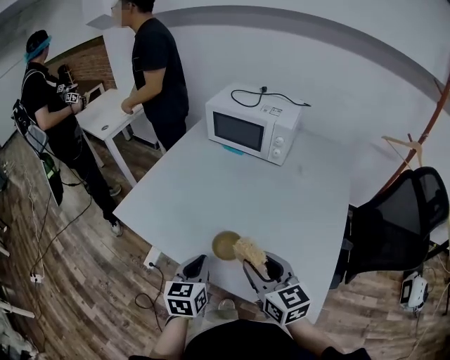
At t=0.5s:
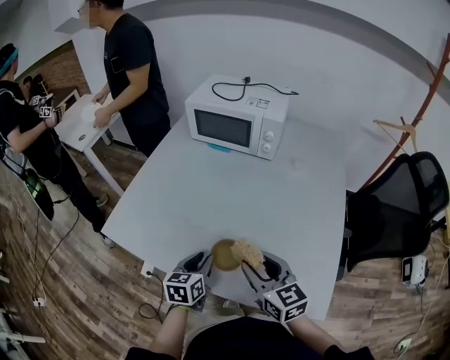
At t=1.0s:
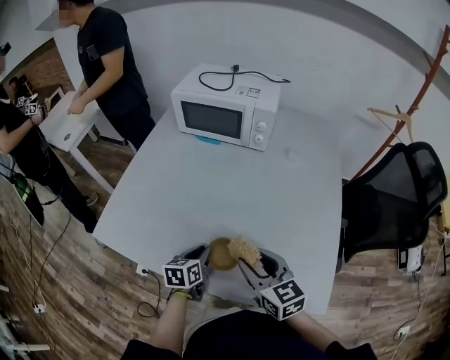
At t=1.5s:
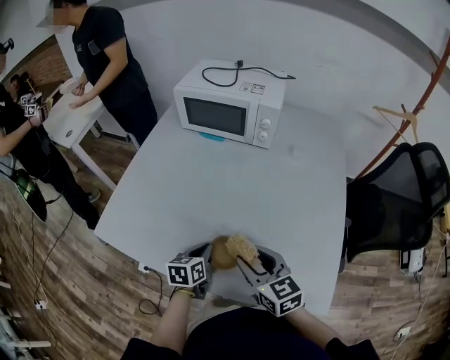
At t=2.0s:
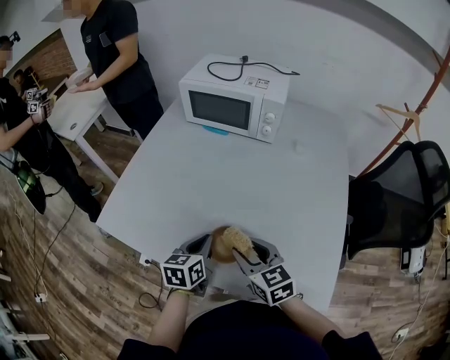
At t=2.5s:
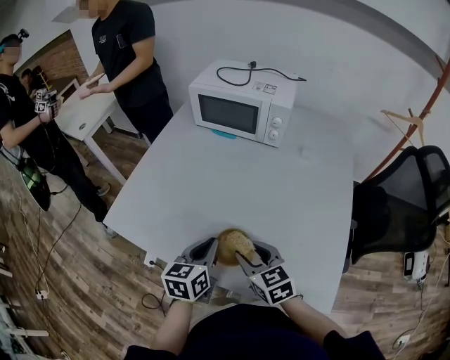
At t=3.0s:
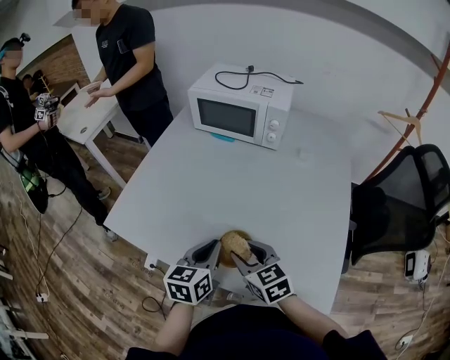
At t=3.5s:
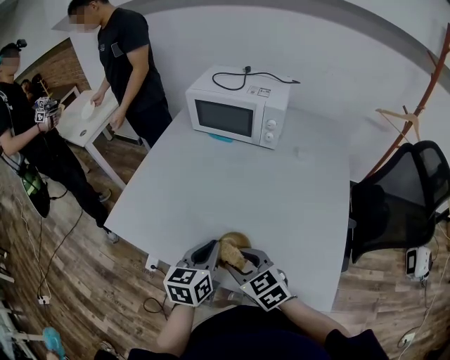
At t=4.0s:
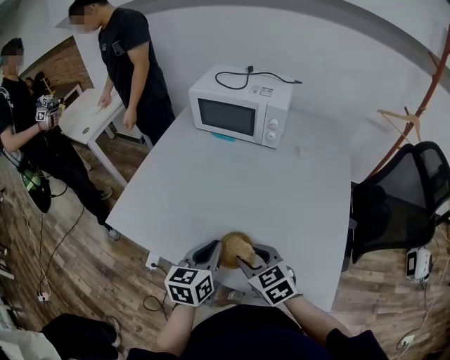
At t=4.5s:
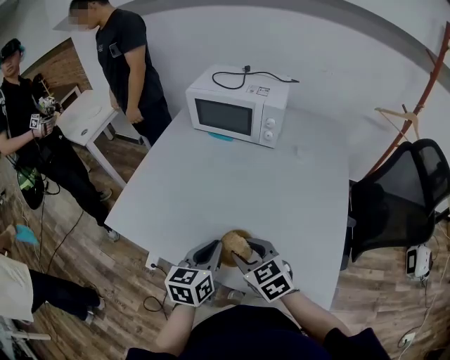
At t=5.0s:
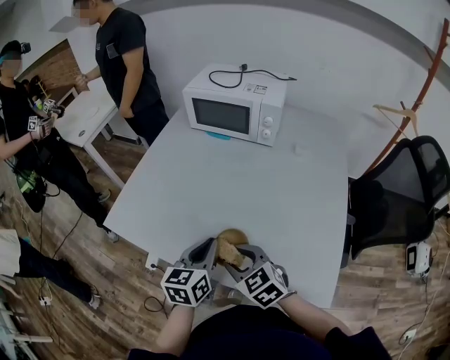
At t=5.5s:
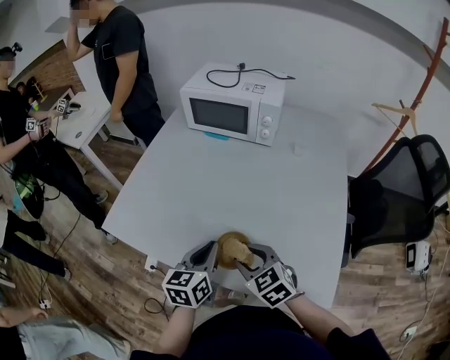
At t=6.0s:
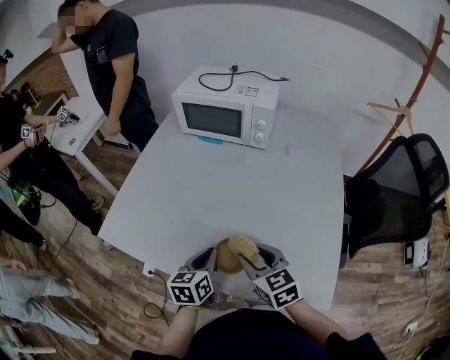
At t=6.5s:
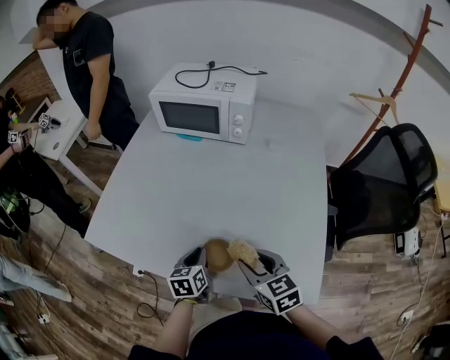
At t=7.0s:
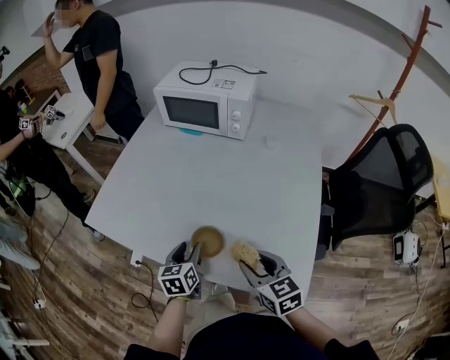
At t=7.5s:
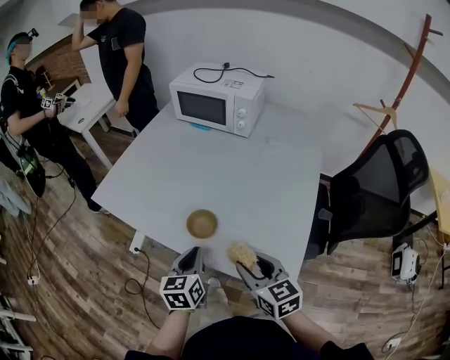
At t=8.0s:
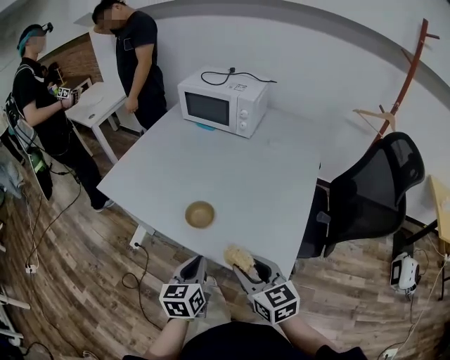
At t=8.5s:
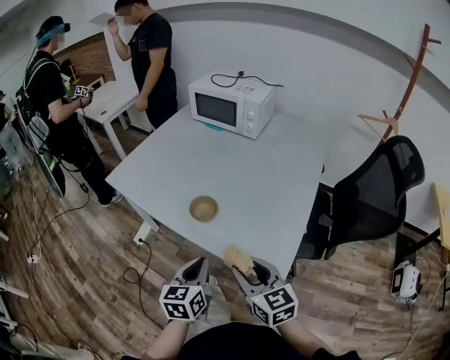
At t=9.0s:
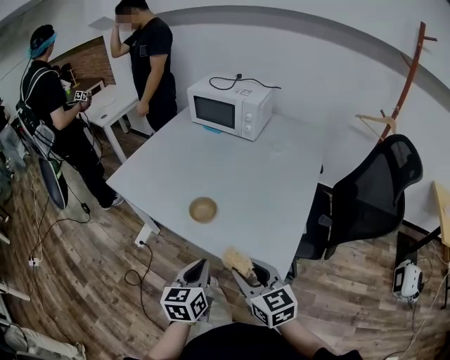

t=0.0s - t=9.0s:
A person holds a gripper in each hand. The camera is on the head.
t=0.0s - t=2.0s: The left gripper moves forward and downward, roughly 10 cm, while the right gripper goes roughly 10 cm downward and forward.
t=2.0s - t=4.5s: The left gripper travels upward by roughly 5 cm.
t=4.5s - t=7.0s: The right gripper is displaced to the right and backward by some 15 cm. The left gripper goes some 10 cm downward, and opens.
t=7.0s - t=9.0s: The two grippers go some 20 cm backward. The left gripper closes up.

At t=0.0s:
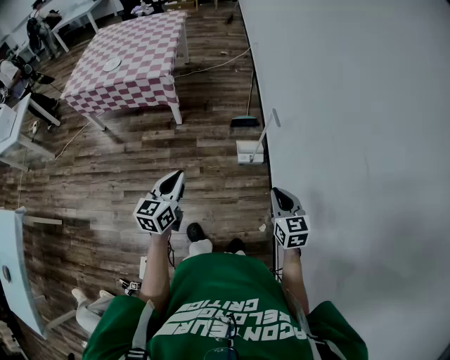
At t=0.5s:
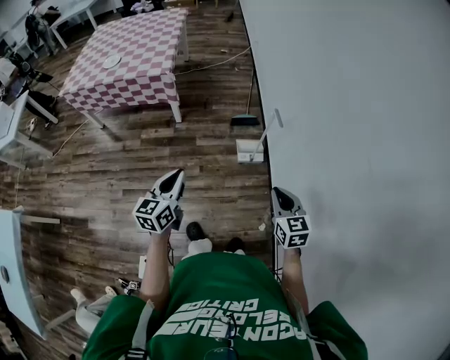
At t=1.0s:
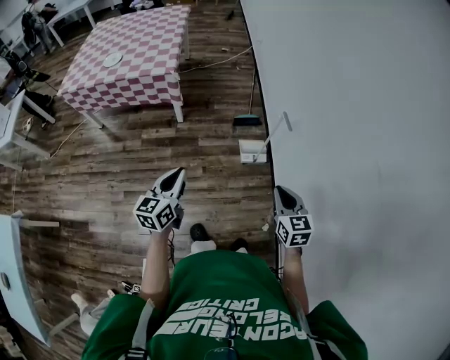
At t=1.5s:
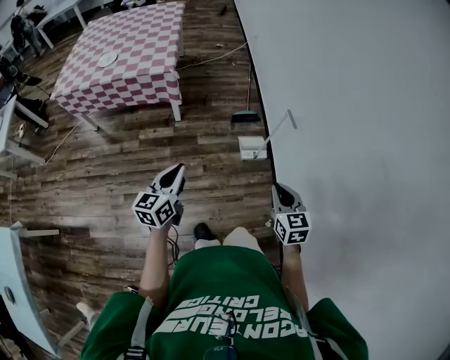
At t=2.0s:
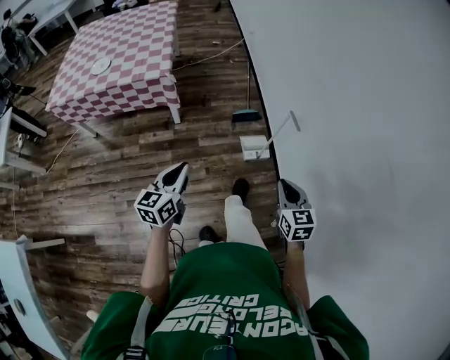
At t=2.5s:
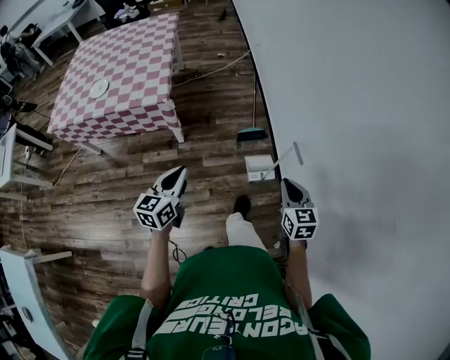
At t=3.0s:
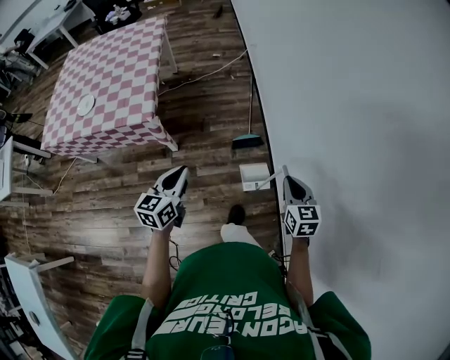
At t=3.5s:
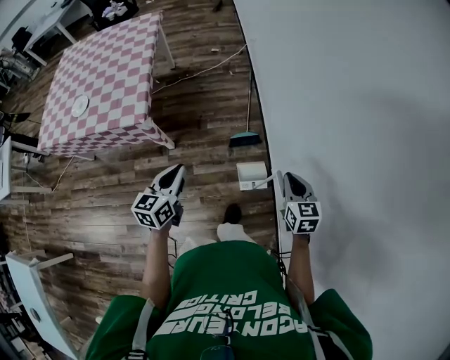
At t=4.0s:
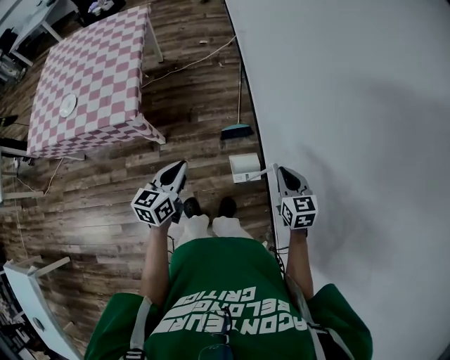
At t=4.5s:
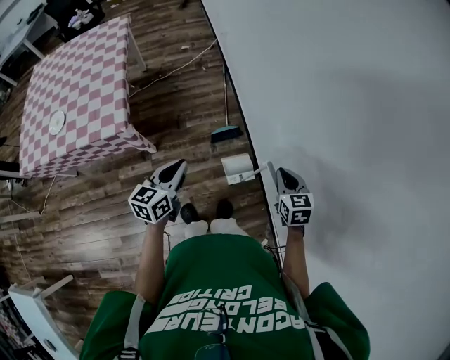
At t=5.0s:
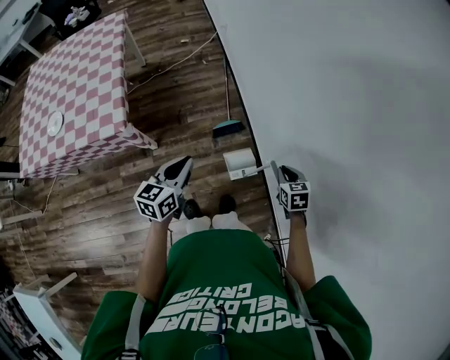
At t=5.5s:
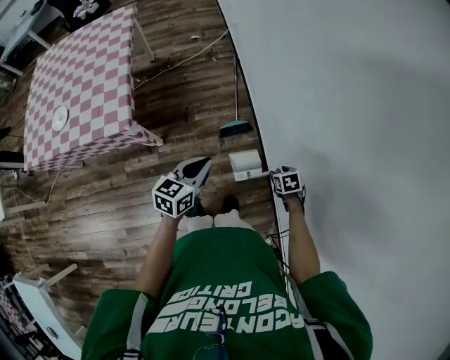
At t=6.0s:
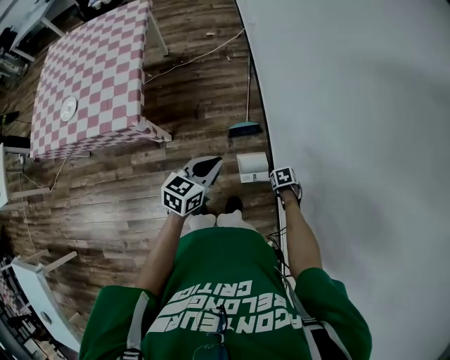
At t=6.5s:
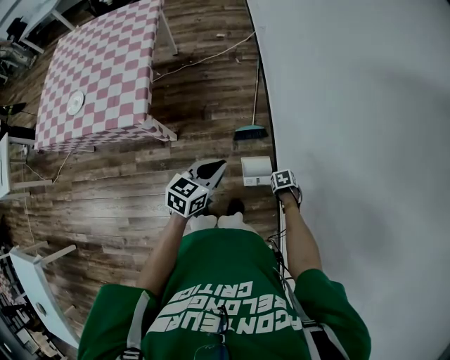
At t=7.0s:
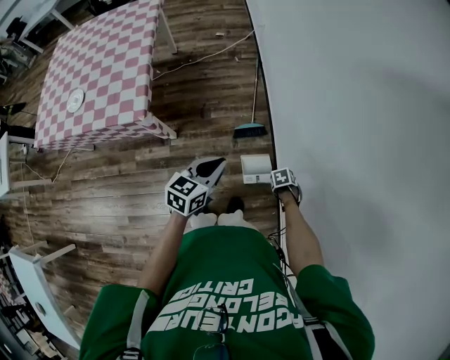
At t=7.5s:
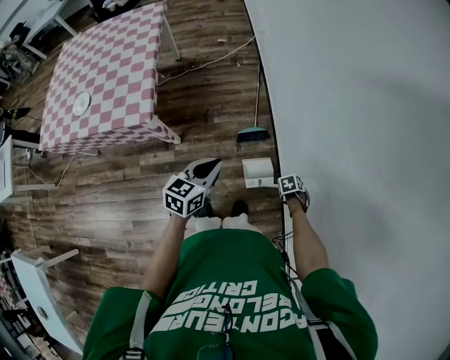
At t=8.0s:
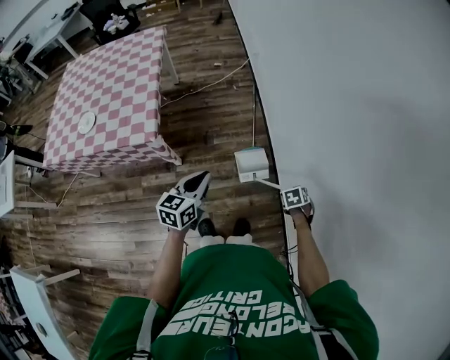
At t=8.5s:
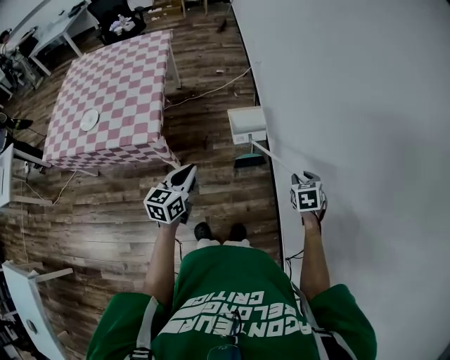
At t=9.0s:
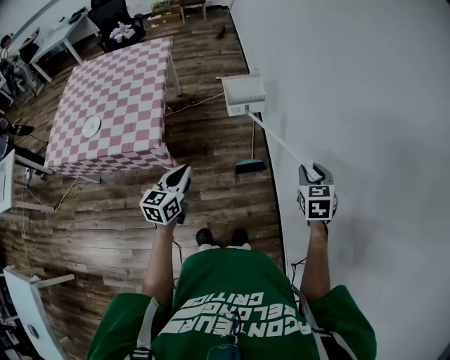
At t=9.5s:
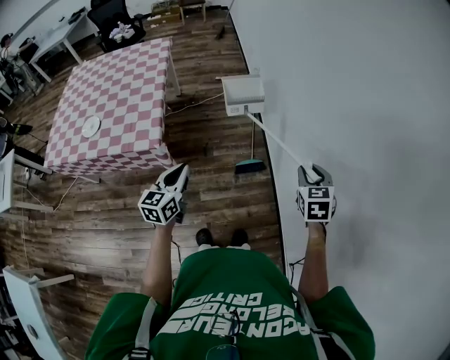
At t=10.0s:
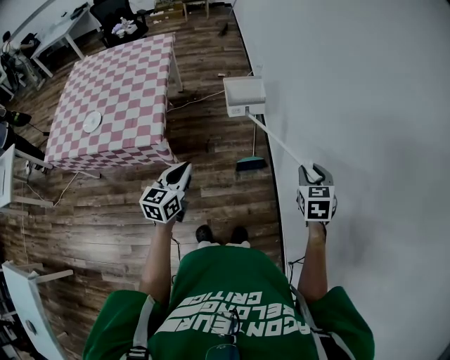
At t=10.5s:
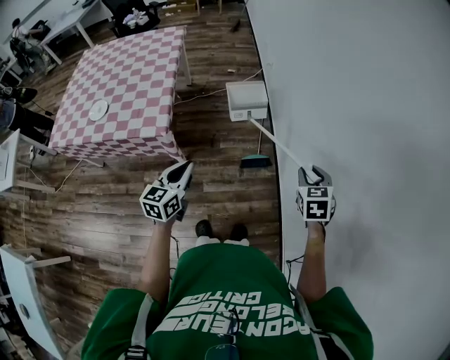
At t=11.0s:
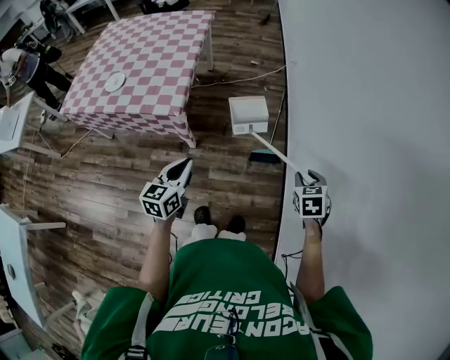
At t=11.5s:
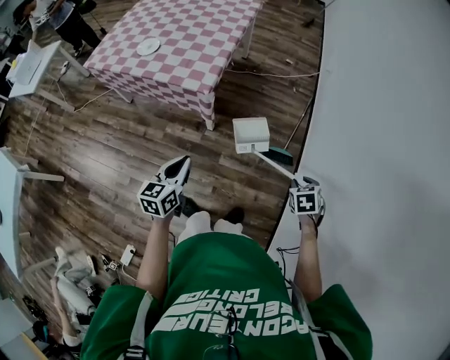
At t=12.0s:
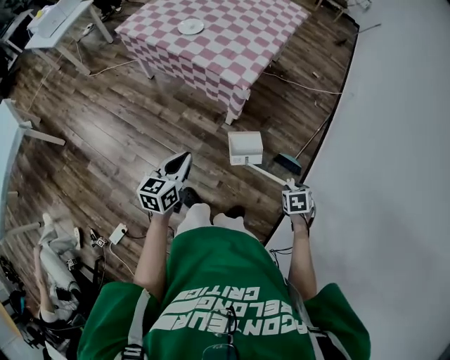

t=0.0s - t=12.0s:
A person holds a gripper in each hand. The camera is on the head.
t=0.0s - t=2.0s: Both grippers travel together to the left and forward, approximately 15 cm.
t=2.0s - t=4.0s: Both grippers move forward, some 35 cm.
t=4.0s - t=6.0s: The right gripper goes some 30 cm downward, tilts its fingers roughly 50 degrees downward, and opens up, while the left gripper moves approximately 15 cm.
t=6.0s - t=8.0s: The right gripper goes some 10 cm upward, and closes. The left gripper ends up roughly 10 cm from where it was.
t=8.0s - t=10.0s: The right gripper is displaced upward by approximately 30 cm, and points its fingers about 40 degrees further upward; the left gripper shifts by roughly 10 cm.
t=10.0s - t=12.0s: The left gripper moves about 30 cm, and swivels about 40 degrees. The right gripper goes approximately 25 cm downward, and tips its fingers downward by roughly 30 degrees.

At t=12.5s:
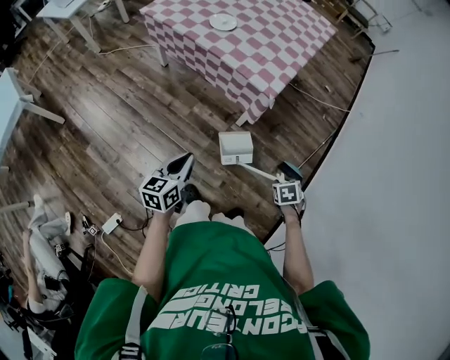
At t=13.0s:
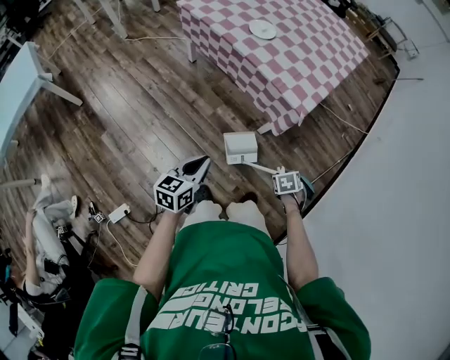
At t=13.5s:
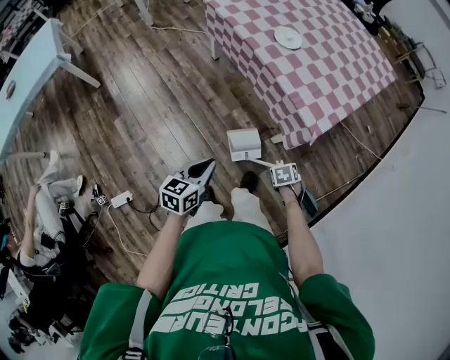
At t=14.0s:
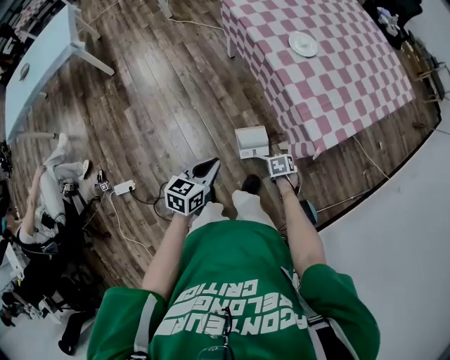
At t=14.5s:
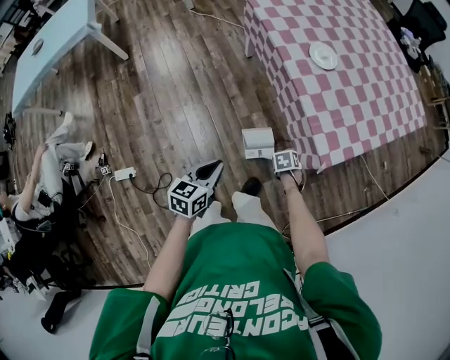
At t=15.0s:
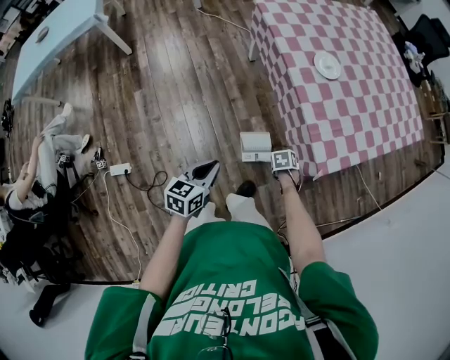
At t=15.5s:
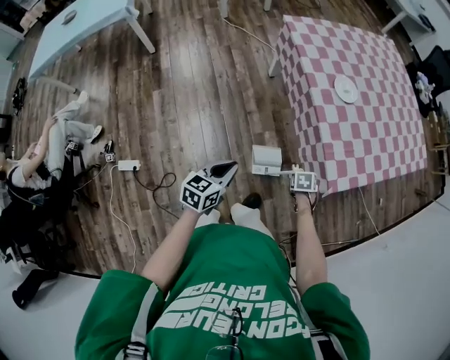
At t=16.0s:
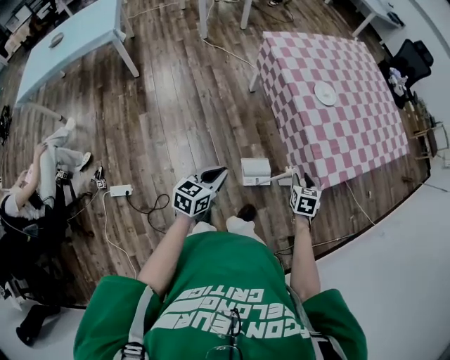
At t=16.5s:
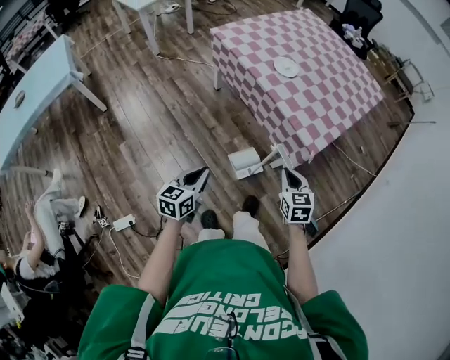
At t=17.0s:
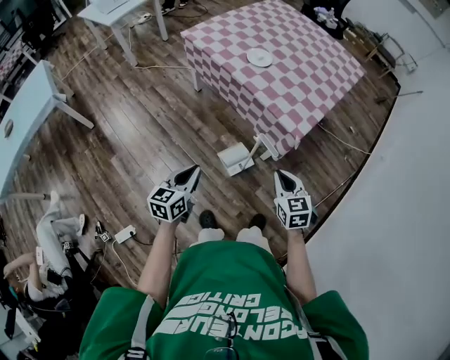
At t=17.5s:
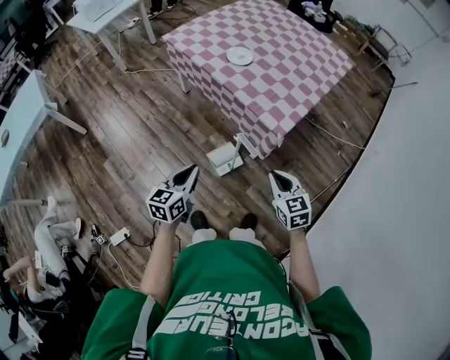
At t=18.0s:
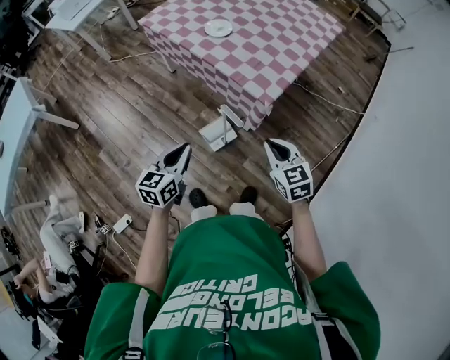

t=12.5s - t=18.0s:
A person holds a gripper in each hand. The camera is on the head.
t=12.5s - t=14.5s: The right gripper moves about 40 cm, and swivels about 30 degrees. The left gripper moves approximately 10 cm, and rotates approximately 20 degrees.
t=14.5s - t=16.0s: The right gripper travels upward by some 20 cm, and points its fingers roughly 40 degrees further upward. The left gripper moves about 10 cm.
t=16.0s - t=18.0s: The left gripper moves to the right, approximately 15 cm. The right gripper moves backward, to the right and upward, some 25 cm, and closes its fingers.
